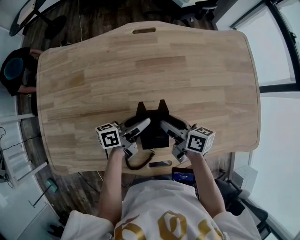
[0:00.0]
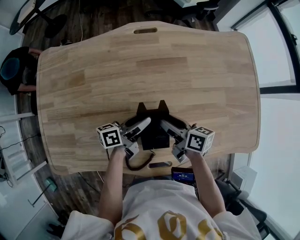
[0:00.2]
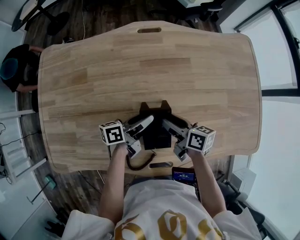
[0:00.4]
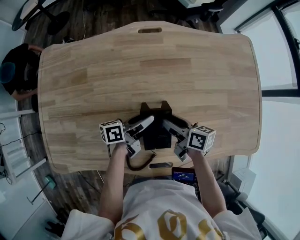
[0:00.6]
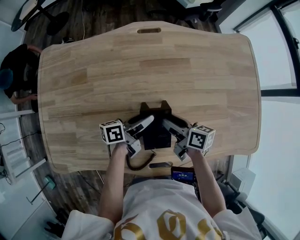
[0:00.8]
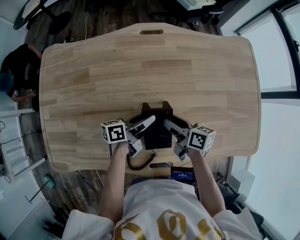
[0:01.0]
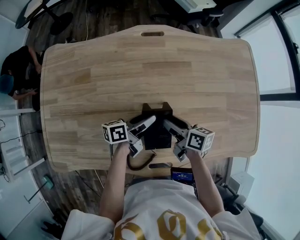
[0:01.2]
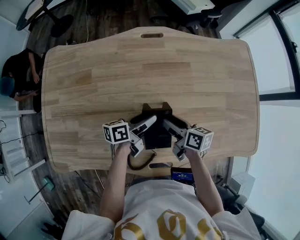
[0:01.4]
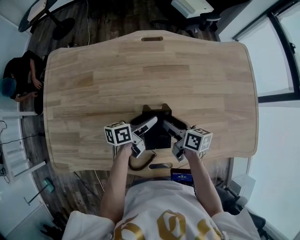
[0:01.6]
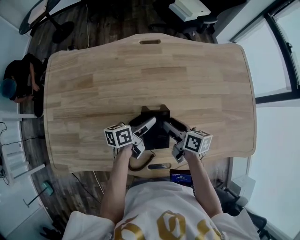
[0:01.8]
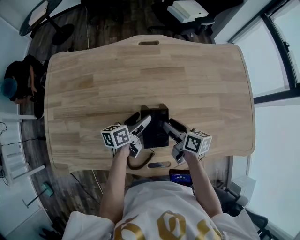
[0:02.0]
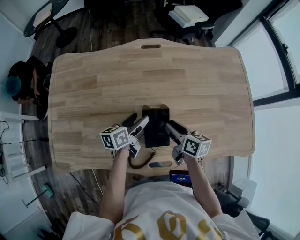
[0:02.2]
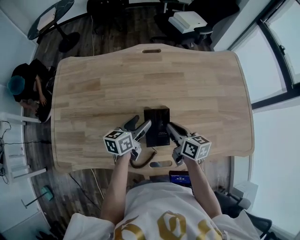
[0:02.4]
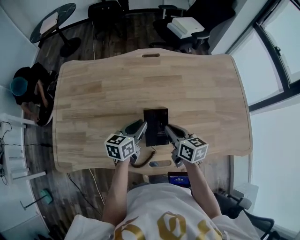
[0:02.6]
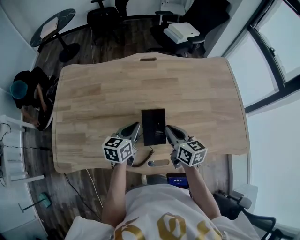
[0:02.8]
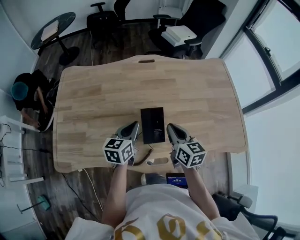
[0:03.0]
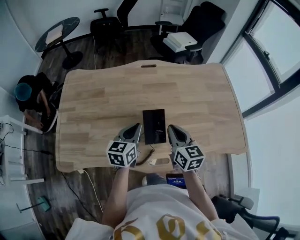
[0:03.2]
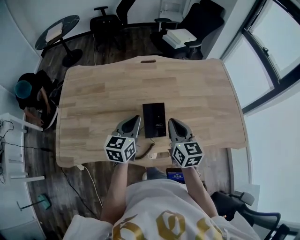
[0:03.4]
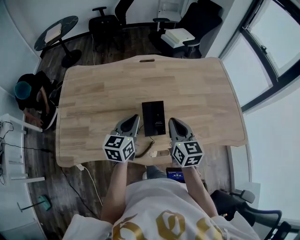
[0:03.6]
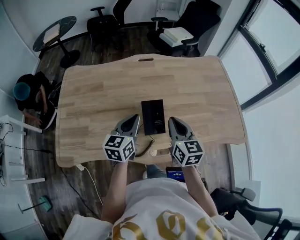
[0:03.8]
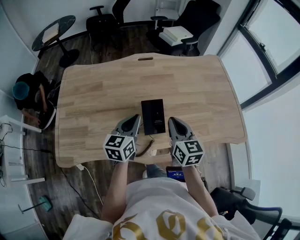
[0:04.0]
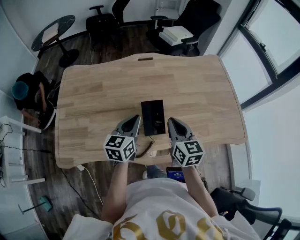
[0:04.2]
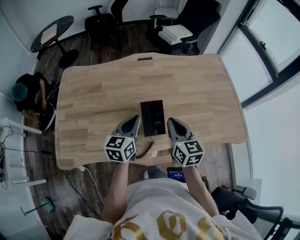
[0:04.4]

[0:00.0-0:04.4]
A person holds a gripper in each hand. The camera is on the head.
0:00.0 to 0:01.4: The grippers stay close to where they were, moving slightly.
0:01.4 to 0:03.0: The two grippers go approximately 15 cm upward and backward. The right gripper rotates roughly 30 degrees, and closes up. Meanwhile the left gripper turns by roughly 40 degrees, and closes its fingers.

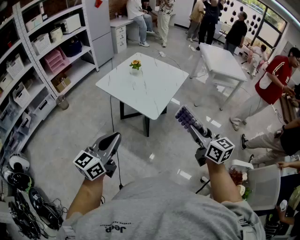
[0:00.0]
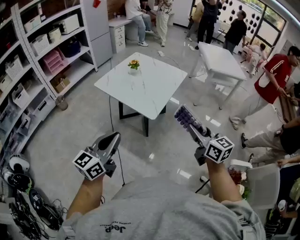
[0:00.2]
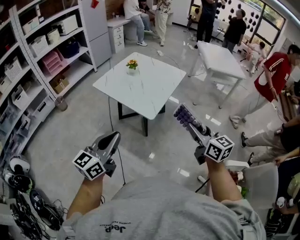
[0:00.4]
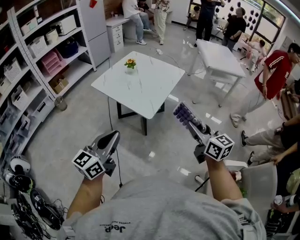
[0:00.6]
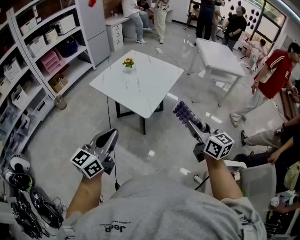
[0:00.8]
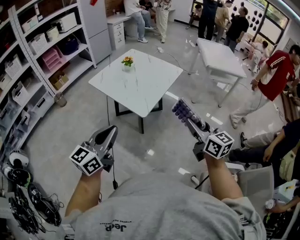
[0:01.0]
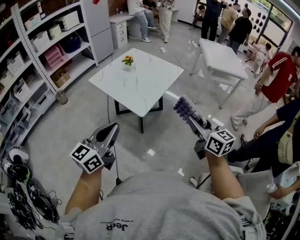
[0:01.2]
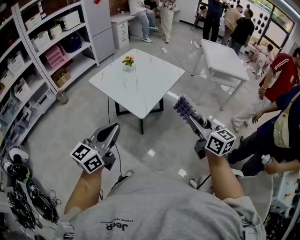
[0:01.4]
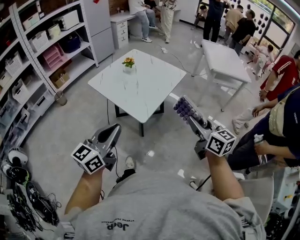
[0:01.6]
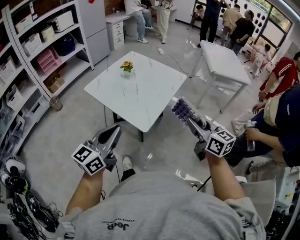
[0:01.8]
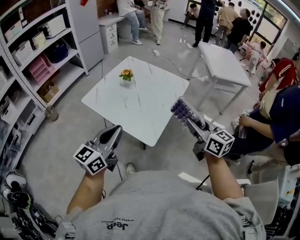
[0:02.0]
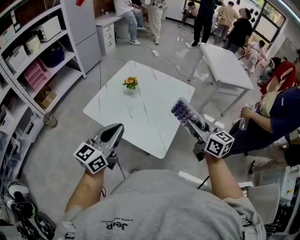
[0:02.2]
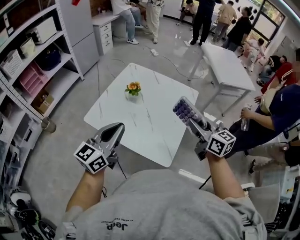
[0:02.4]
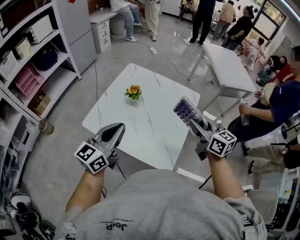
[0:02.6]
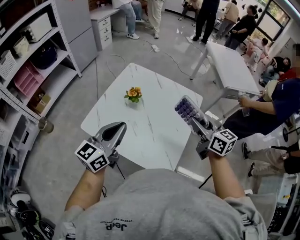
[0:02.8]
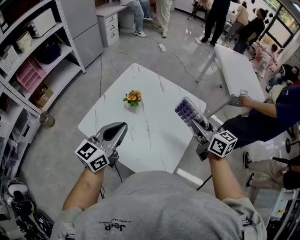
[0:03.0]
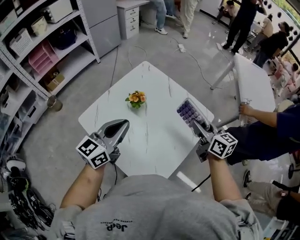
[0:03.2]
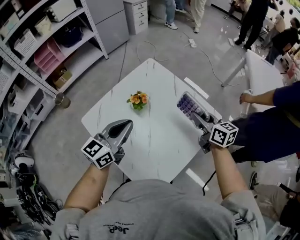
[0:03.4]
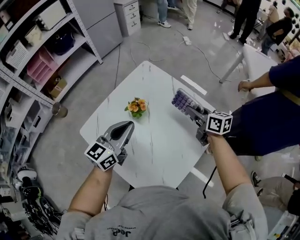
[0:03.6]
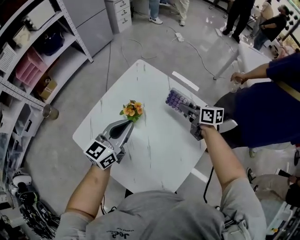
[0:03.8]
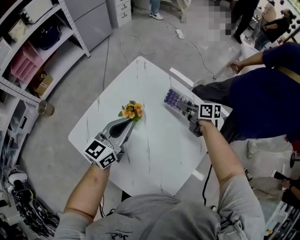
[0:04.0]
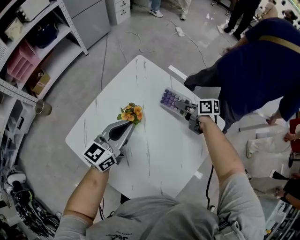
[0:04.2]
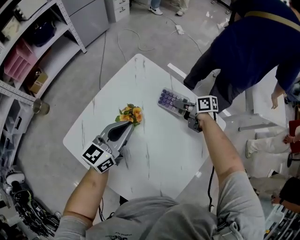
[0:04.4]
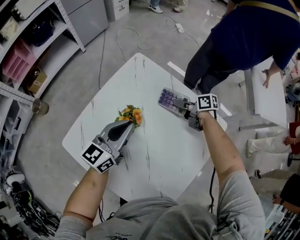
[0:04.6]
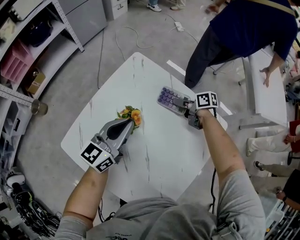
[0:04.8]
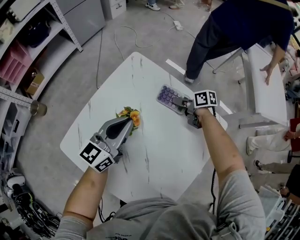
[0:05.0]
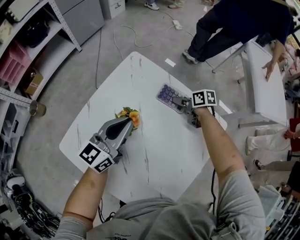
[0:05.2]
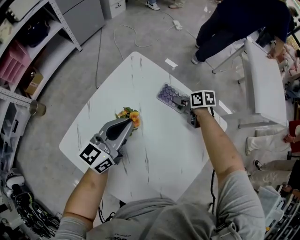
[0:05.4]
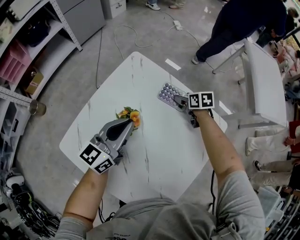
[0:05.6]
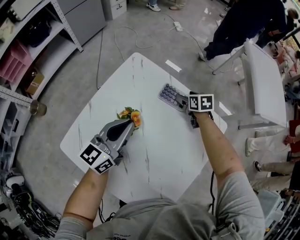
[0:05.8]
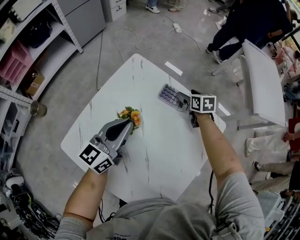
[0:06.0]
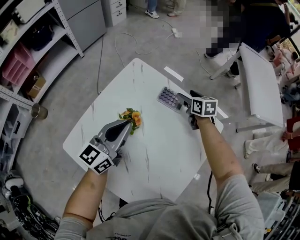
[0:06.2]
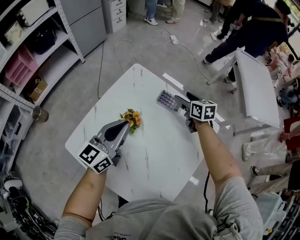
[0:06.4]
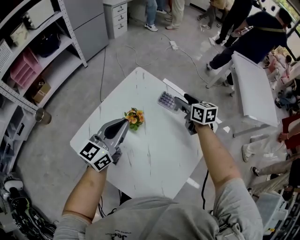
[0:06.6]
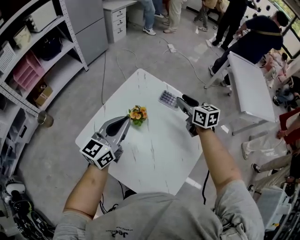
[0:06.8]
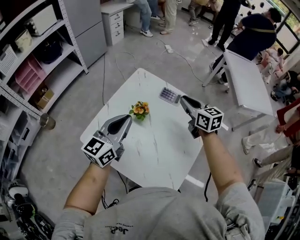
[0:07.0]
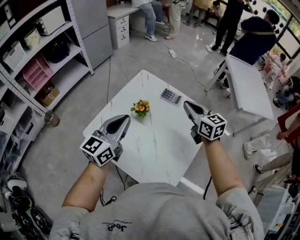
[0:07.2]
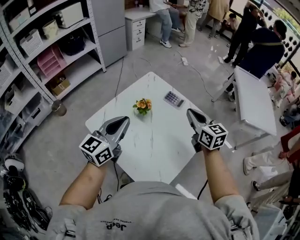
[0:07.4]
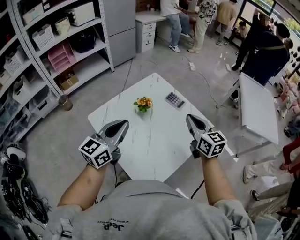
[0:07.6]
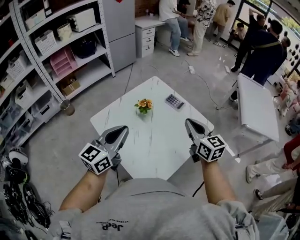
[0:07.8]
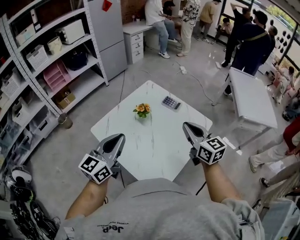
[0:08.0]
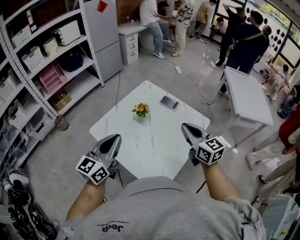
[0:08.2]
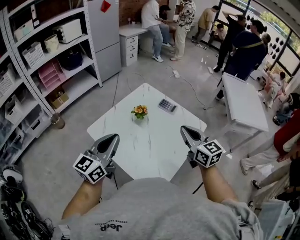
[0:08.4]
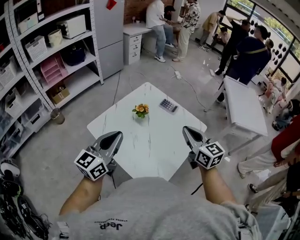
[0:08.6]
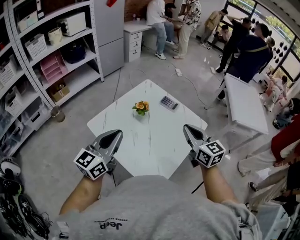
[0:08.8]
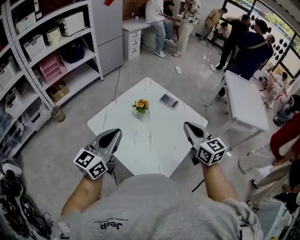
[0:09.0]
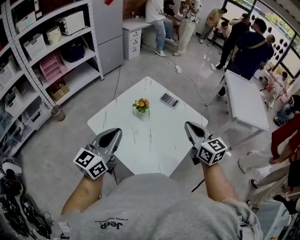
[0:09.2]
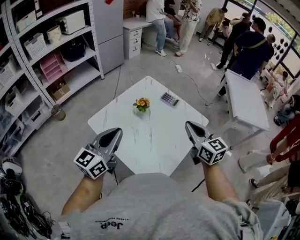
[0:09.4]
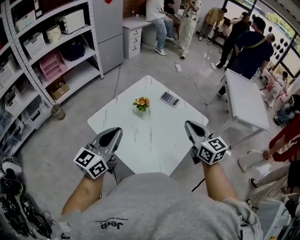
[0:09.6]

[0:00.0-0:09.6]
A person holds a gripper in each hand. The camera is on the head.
0:00.0 to 0:01.6: The left gripper goes some 15 cm to the right and forward, while the right gripper moves forward and to the right, some 15 cm.
0:01.6 to 0:03.2: Both grippers are carried forward, about 60 cm.
0:03.2 to 0:04.8: The right gripper is displaced downward and forward by roughly 40 cm, and swivels roughly 40 degrees. The left gripper heads forward and downward, covering some 25 cm.
0:04.8 to 0:06.4: The left gripper goes some 5 cm upward; the right gripper goes about 10 cm upward, swivels roughly 40 degrees, and opens its fingers.
0:06.4 to 0:08.0: The two grippers go roughly 35 cm backward and upward. The right gripper swivels approximately 30 degrees, and closes its fingers.
0:08.0 to 0:09.6: The grippers stay close to where they were, moving slightly.

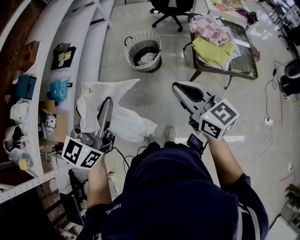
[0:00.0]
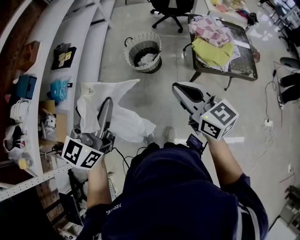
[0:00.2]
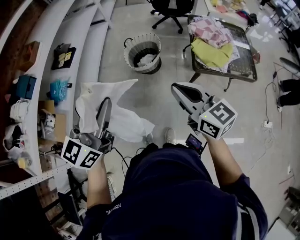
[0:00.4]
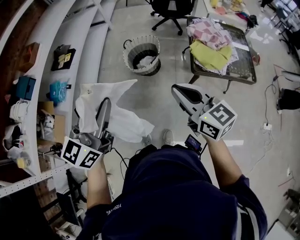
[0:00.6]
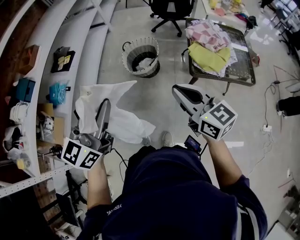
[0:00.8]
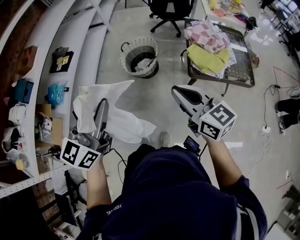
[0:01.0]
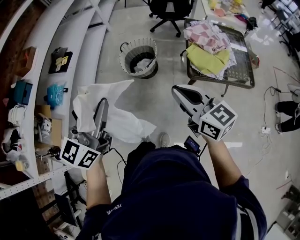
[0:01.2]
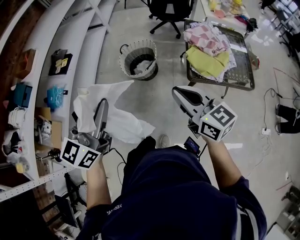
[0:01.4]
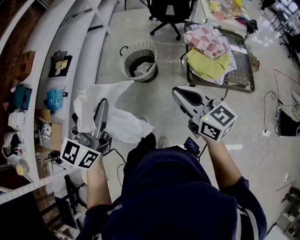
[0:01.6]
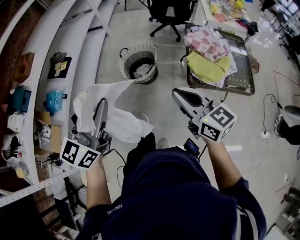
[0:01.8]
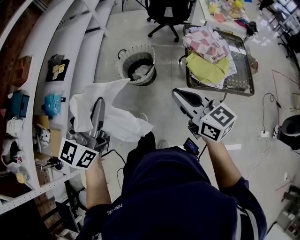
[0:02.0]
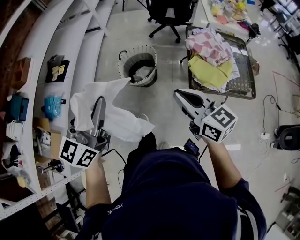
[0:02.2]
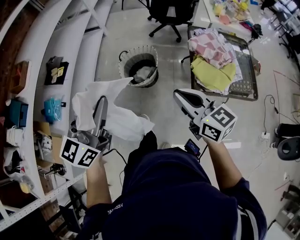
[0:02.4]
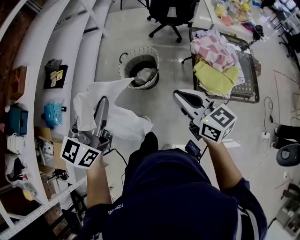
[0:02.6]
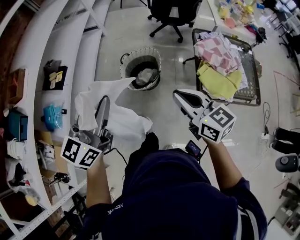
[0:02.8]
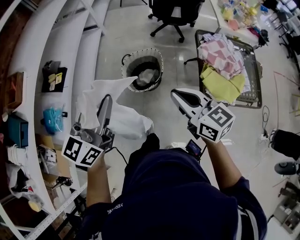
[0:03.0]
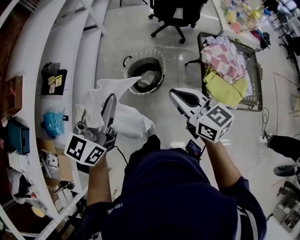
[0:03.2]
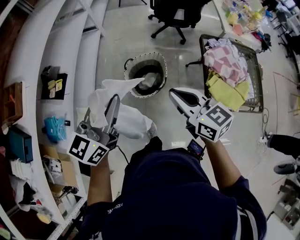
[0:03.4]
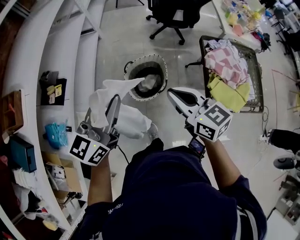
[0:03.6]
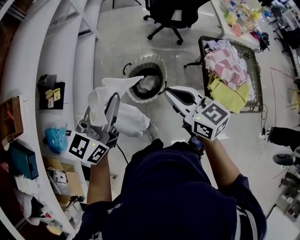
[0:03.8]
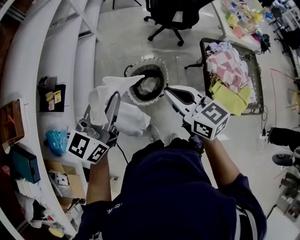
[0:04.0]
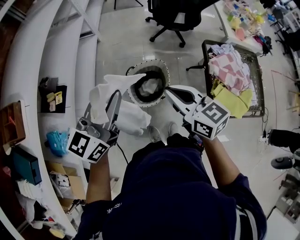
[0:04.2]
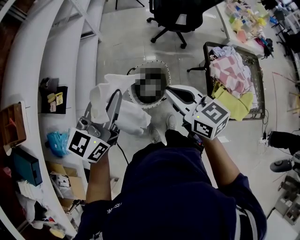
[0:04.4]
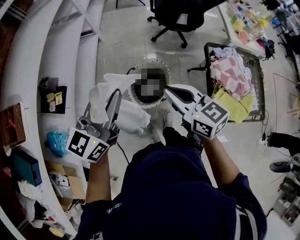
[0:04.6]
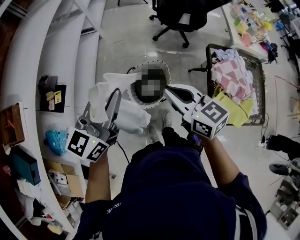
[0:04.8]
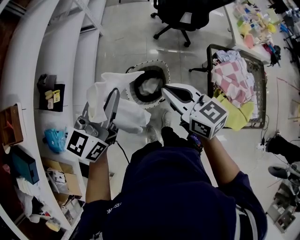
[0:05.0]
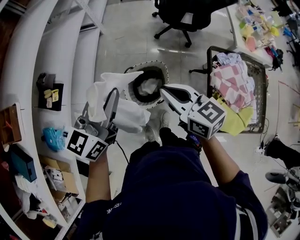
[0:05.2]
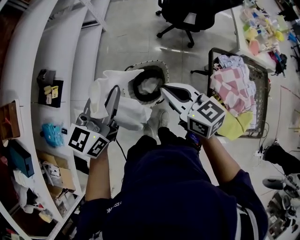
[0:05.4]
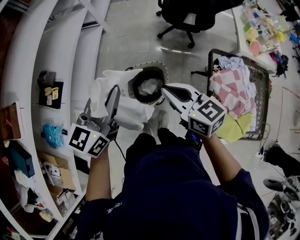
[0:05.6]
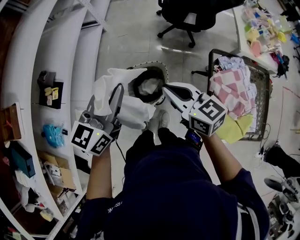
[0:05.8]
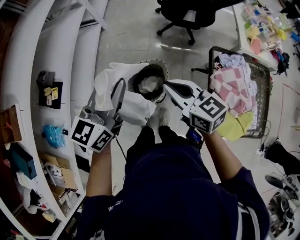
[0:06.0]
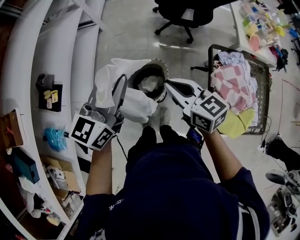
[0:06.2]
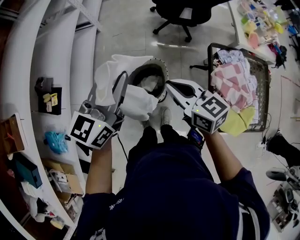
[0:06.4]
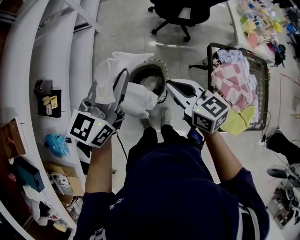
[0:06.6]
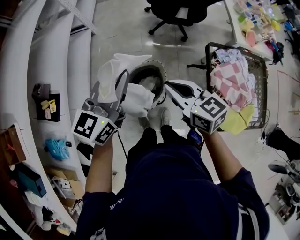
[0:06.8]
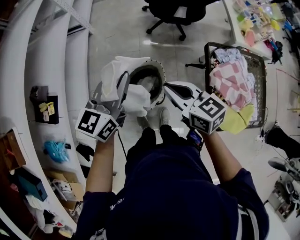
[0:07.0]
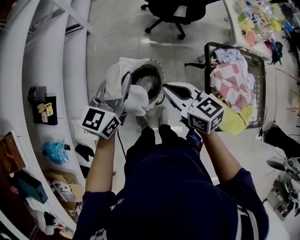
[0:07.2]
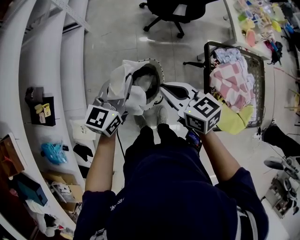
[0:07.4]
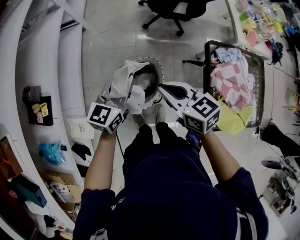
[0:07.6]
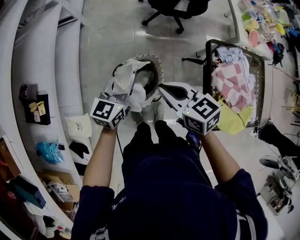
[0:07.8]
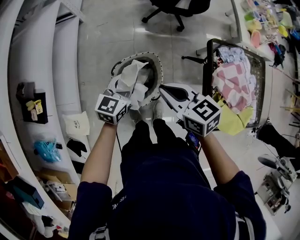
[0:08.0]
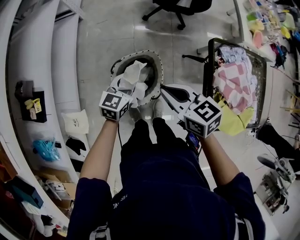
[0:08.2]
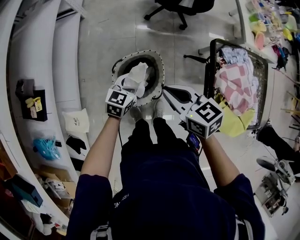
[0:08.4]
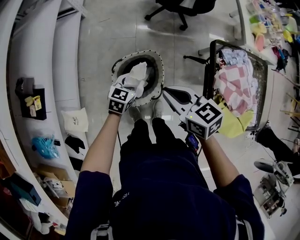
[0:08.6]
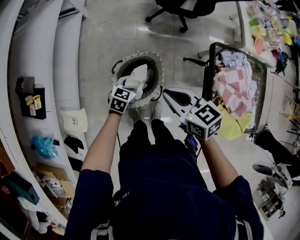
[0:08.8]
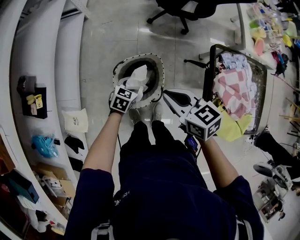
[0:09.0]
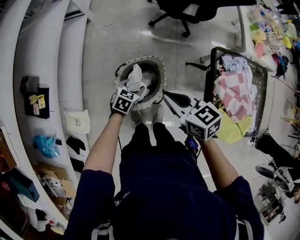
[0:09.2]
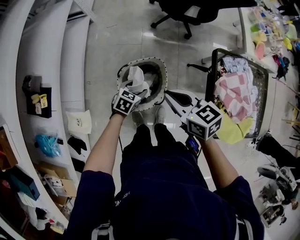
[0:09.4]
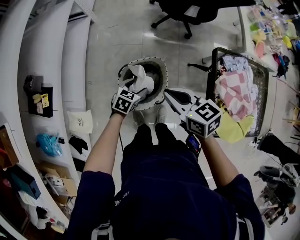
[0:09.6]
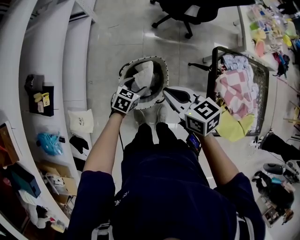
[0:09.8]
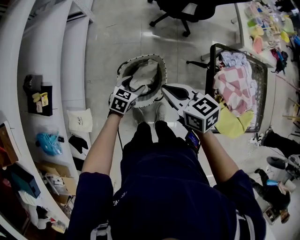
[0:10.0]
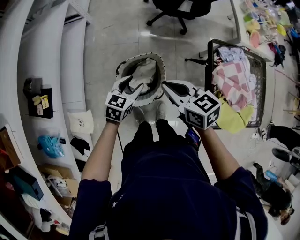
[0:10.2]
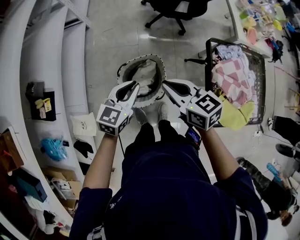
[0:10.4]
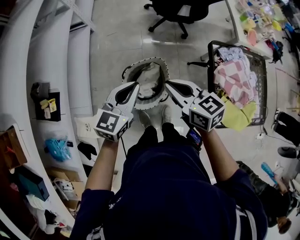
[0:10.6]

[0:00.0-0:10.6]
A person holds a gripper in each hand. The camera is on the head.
0:00.0 to 0:01.6: The right gripper travels to the right and forward by approximately 10 cm. The left gripper shifts about 10 cm forward and to the right.
0:01.6 to 0:03.0: Both grippers move forward, about 20 cm.
0:03.0 to 0:04.6: The left gripper shifts approximately 20 cm forward; the right gripper goes about 20 cm forward and to the left.
0:04.6 to 0:06.0: The grippers both shift to the right and forward by roughly 15 cm.
0:06.0 to 0:07.6: The left gripper heads downward and forward, covering roughly 15 cm. The right gripper is displaced downward by approximately 5 cm.
0:07.6 to 0:09.0: The left gripper heads downward, covering some 25 cm, and points its fingers roughly 30 degrees further downward.
0:09.0 to 0:10.6: The right gripper goes some 5 cm upward. The left gripper shifts approximately 25 cm upward, swivels some 30 degrees, and opens and closes again.
